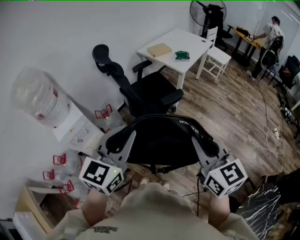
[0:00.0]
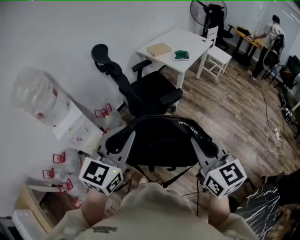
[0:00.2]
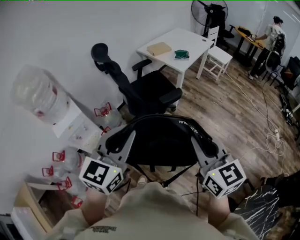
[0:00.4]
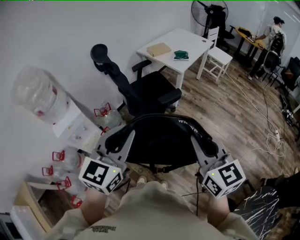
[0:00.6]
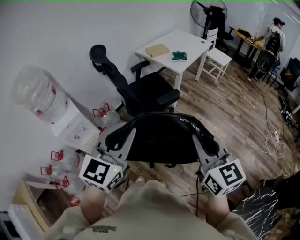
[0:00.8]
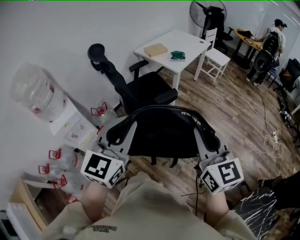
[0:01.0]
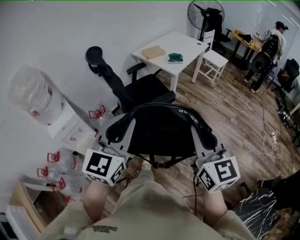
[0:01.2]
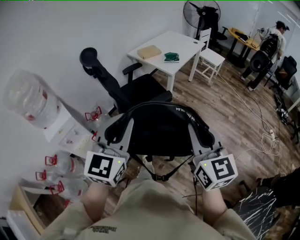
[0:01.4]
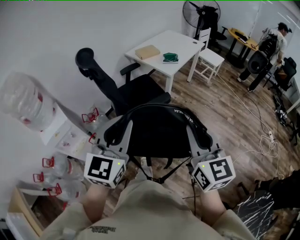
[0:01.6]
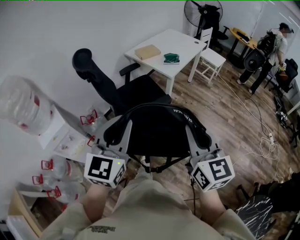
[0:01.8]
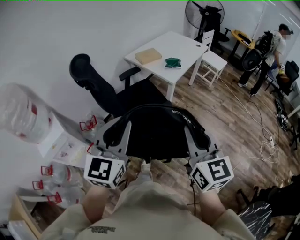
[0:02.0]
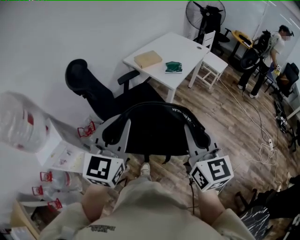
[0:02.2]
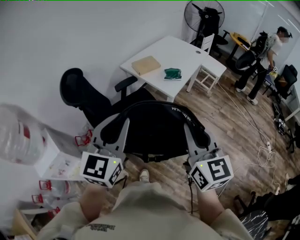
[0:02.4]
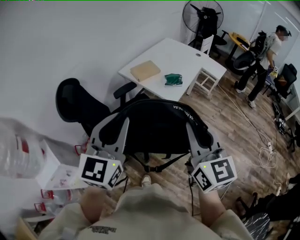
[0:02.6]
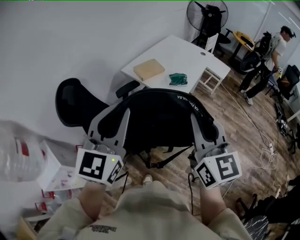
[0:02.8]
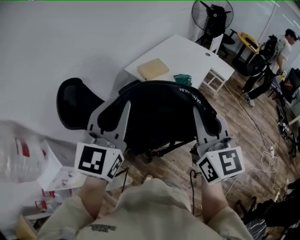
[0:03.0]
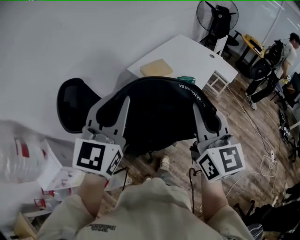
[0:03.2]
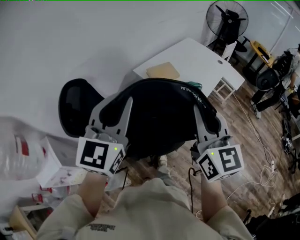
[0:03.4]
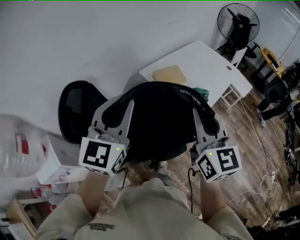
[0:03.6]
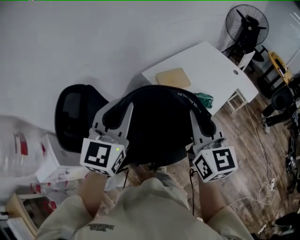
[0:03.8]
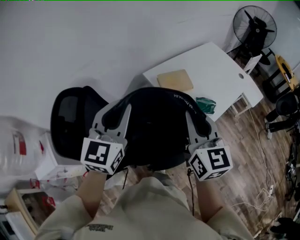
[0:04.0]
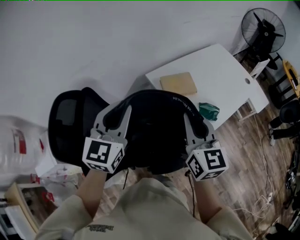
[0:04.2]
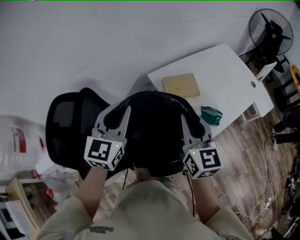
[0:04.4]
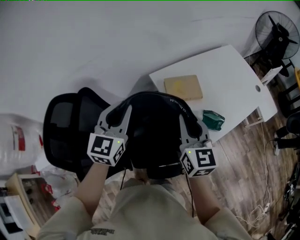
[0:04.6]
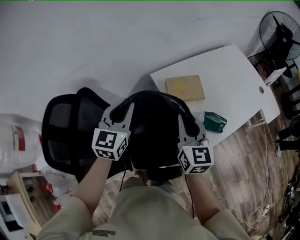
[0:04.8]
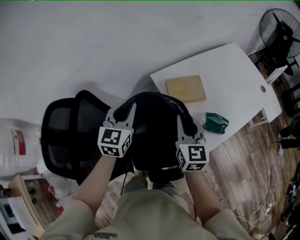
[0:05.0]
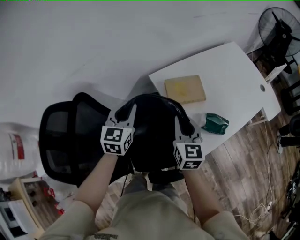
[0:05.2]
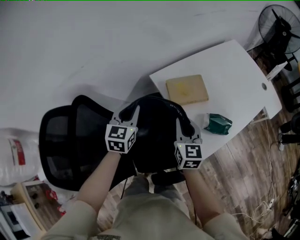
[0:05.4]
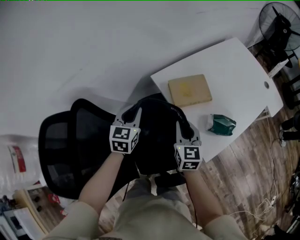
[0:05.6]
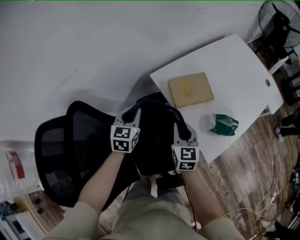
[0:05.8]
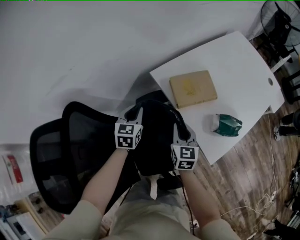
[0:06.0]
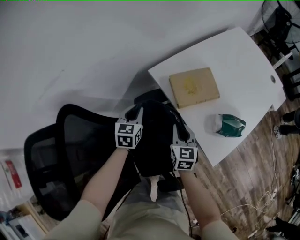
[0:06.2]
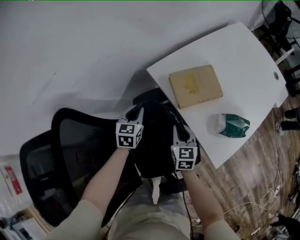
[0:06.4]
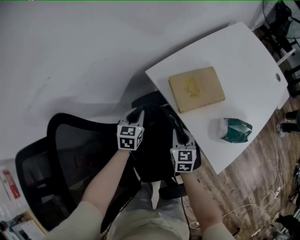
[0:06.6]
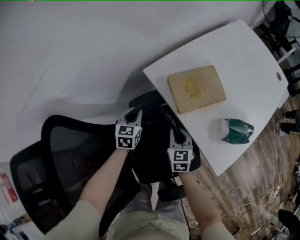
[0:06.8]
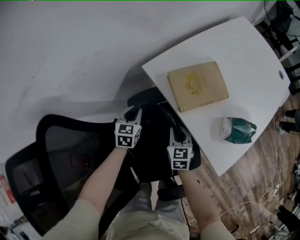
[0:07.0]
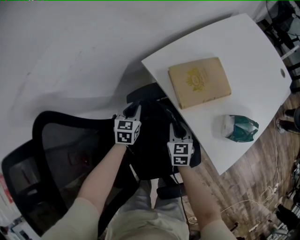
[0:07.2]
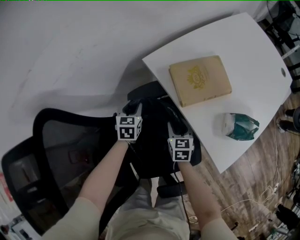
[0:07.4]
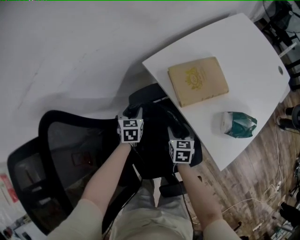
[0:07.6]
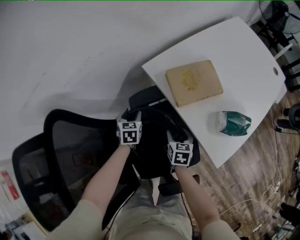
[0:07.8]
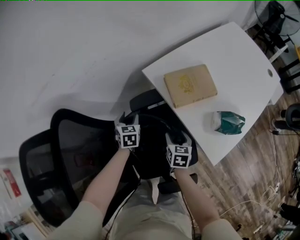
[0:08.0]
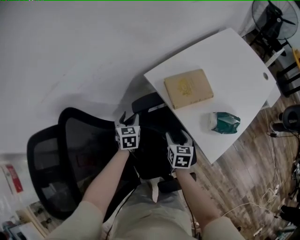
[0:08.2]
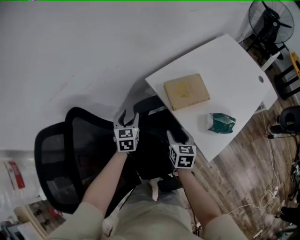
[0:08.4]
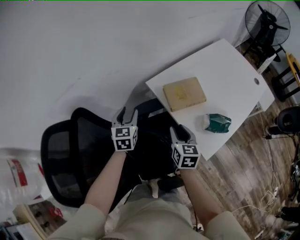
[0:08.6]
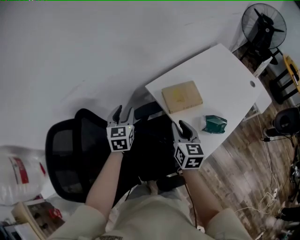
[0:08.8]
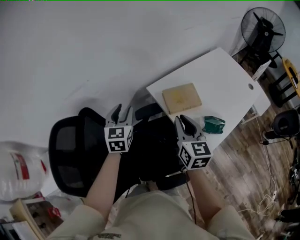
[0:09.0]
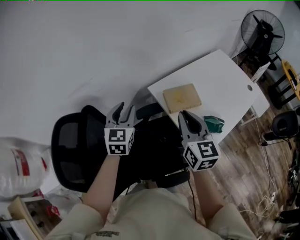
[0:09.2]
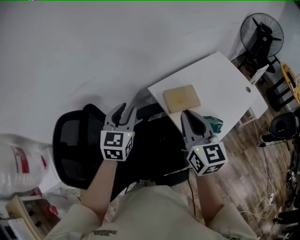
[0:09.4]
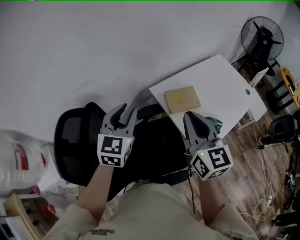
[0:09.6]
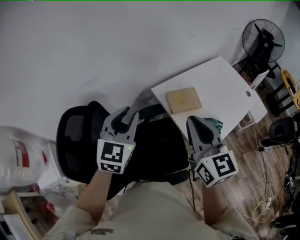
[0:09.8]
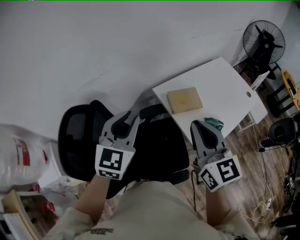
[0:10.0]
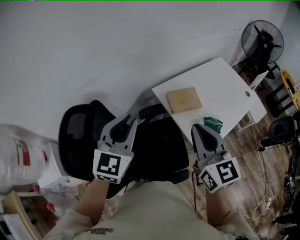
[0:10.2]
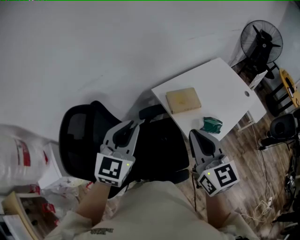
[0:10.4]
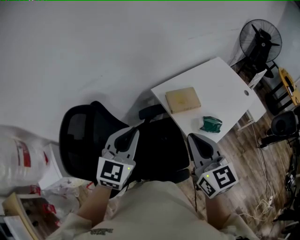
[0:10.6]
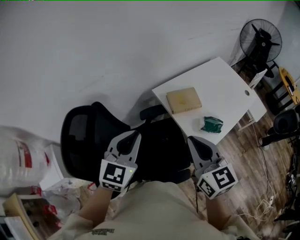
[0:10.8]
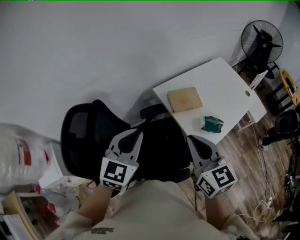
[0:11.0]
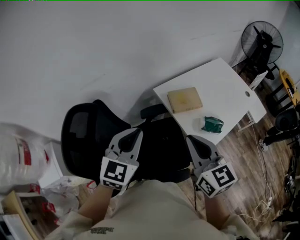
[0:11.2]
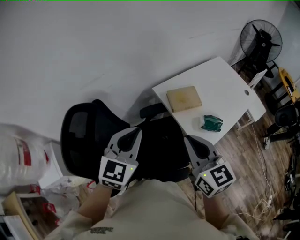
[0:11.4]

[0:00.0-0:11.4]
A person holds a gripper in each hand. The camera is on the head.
0:00.0 to 0:01.4: Both grippers travel together to the right, some 10 cm.
0:01.4 to 0:02.8: The grippers both shift forward by approximately 40 cm.
0:02.8 to 0:04.2: The grippers both shift forward by some 30 cm. The right gripper rotates roughly 20 degrees, while the left gripper changes its angle by some 20 degrees.
0:04.2 to 0:05.6: Both grippers travel together downward and forward, some 30 cm. The left gripper turns by some 20 degrees.
0:05.6 to 0:07.2: The grippers both shift downward by roughly 30 cm.
0:07.2 to 0:08.6: Both grippers move upward, some 25 cm. The left gripper opens. The right gripper opens, then closes once more.
0:08.6 to 0:10.0: The left gripper is displaced upward and backward by about 30 cm, changes its angle by roughly 20 degrees, and closes up; the right gripper travels upward by some 30 cm, turns by about 30 degrees, and closes its fingers.
0:10.0 to 0:11.4: The left gripper is displaced backward by approximately 5 cm. Meanwhile the right gripper ends up some 5 cm from where it was.

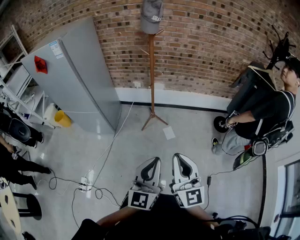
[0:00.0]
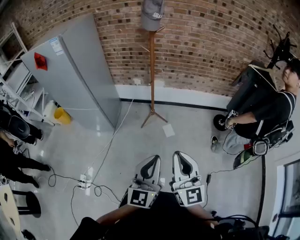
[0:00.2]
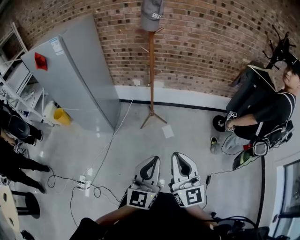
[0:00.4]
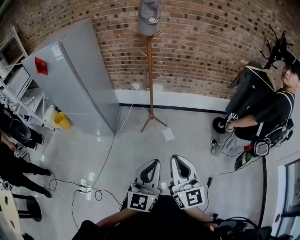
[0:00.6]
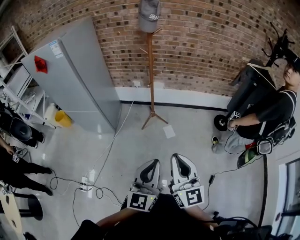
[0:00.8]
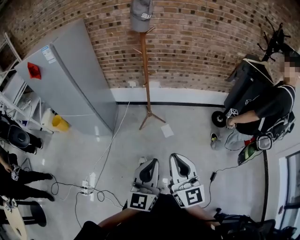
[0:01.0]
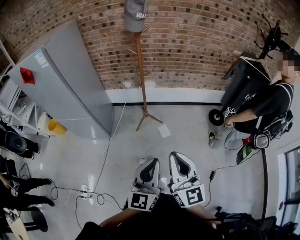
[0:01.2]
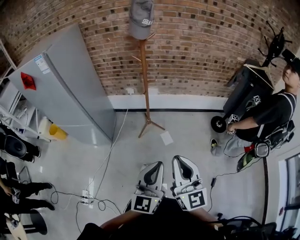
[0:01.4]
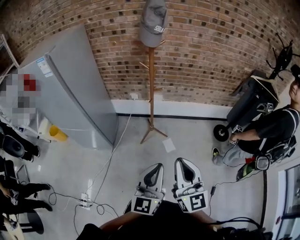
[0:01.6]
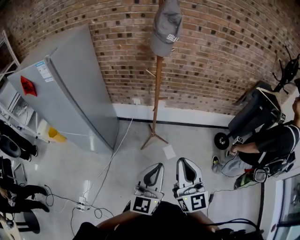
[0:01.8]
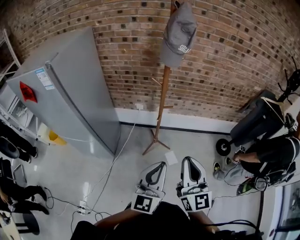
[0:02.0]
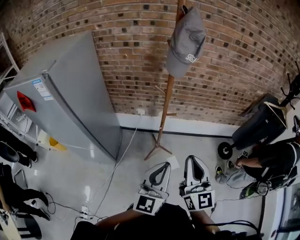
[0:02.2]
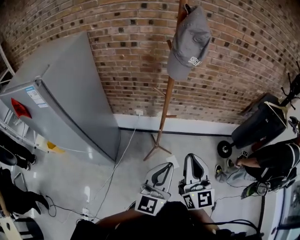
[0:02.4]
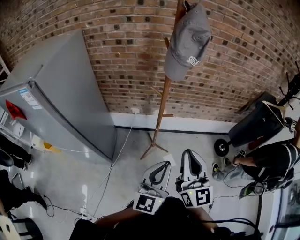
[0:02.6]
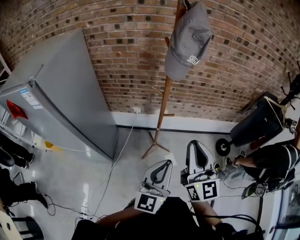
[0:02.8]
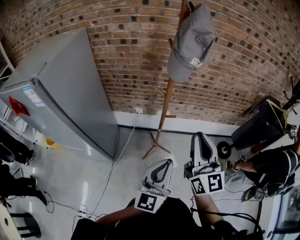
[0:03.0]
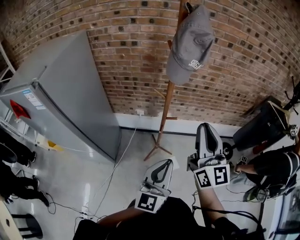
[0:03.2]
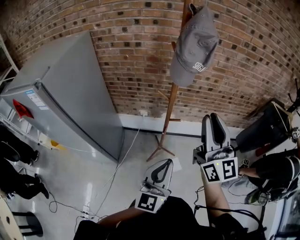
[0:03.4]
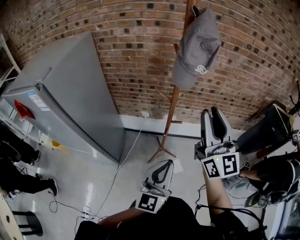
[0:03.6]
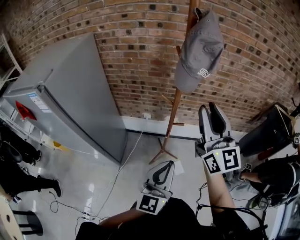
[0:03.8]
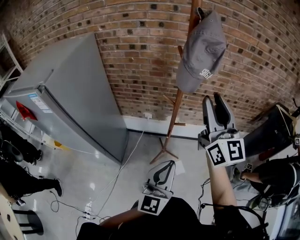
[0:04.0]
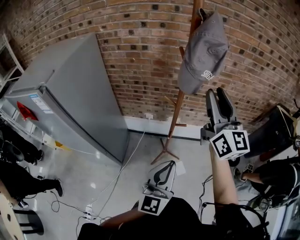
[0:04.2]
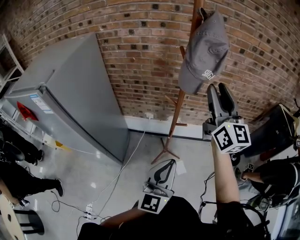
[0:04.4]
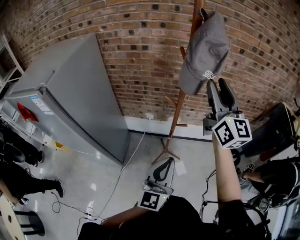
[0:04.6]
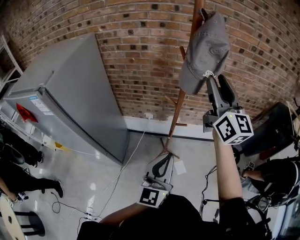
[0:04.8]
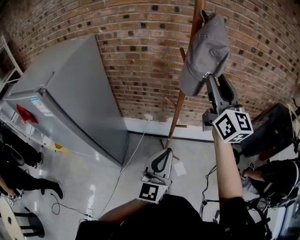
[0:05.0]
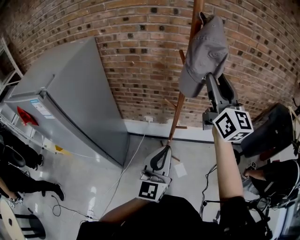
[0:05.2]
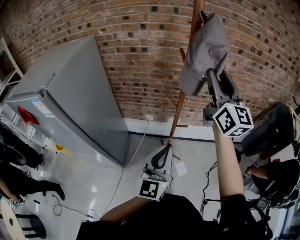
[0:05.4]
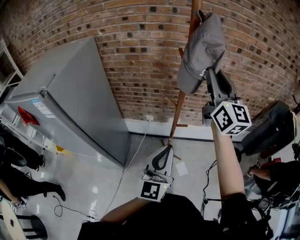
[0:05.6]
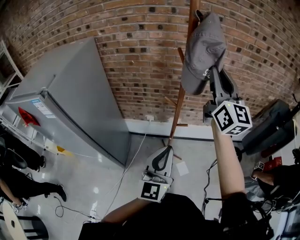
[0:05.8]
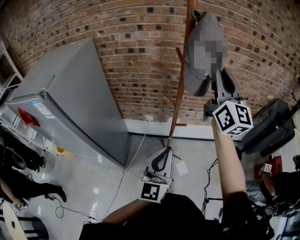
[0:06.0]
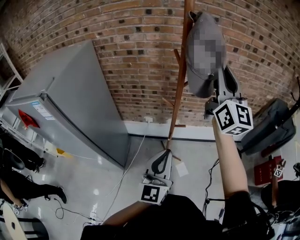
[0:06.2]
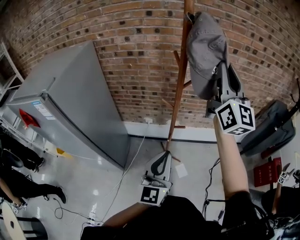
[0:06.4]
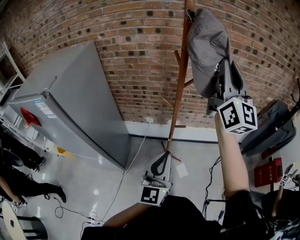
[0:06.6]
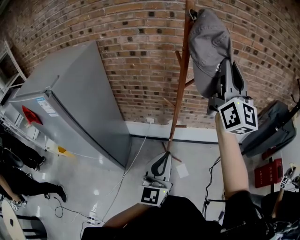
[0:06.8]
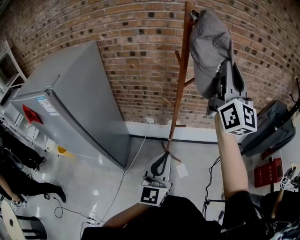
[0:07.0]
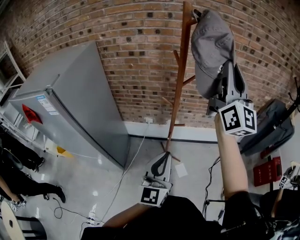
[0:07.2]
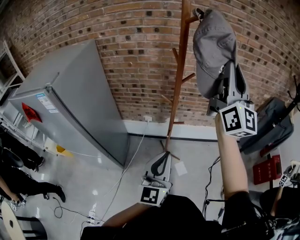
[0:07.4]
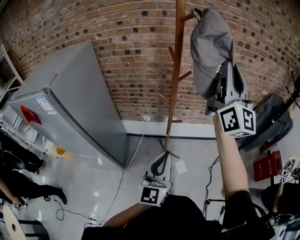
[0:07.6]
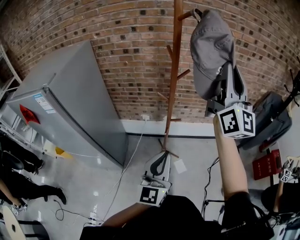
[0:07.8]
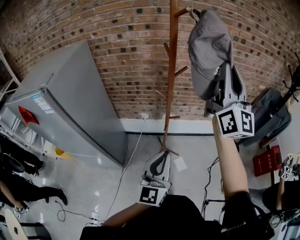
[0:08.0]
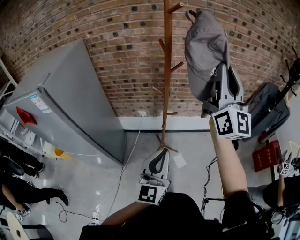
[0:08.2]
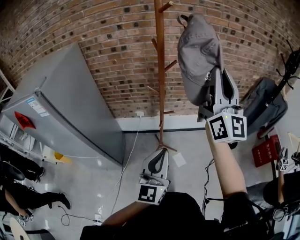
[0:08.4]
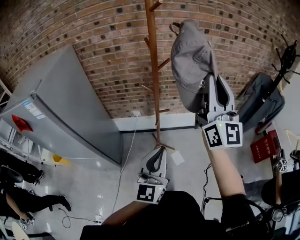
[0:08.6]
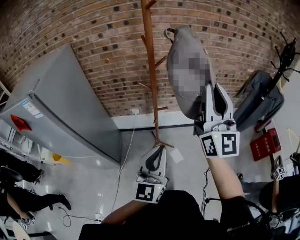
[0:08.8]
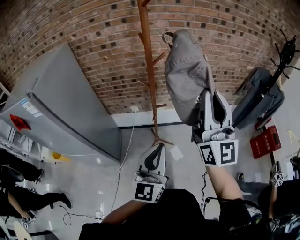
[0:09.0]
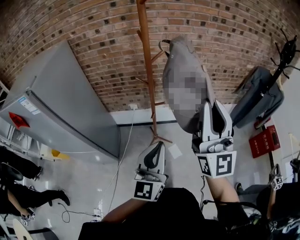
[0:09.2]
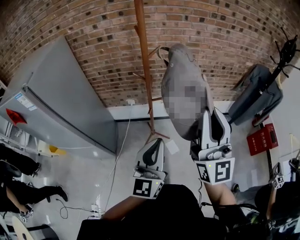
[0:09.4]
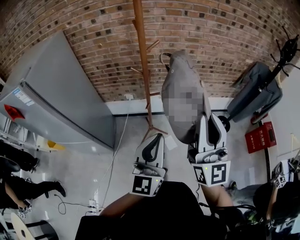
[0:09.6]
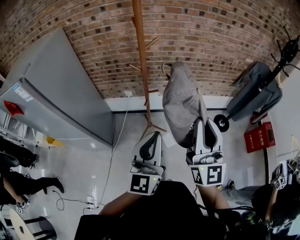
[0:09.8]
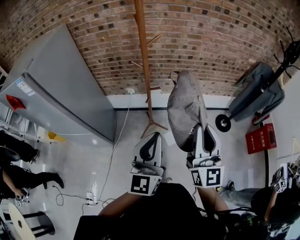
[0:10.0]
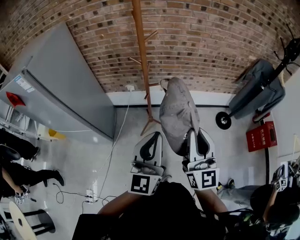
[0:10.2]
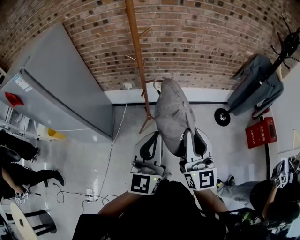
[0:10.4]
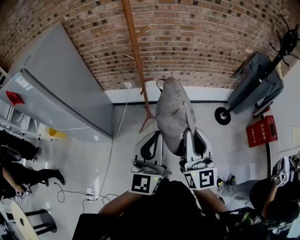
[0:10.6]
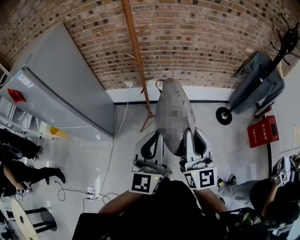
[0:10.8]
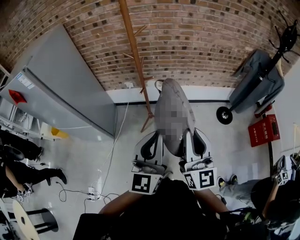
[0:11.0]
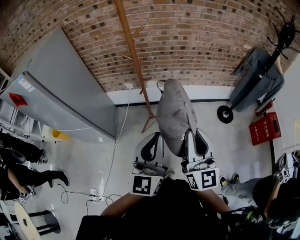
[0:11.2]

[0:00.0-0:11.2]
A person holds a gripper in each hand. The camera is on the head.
0:00.0 to 0:01.6: Both grippers travel together forward, approximately 10 cm.
0:01.6 to 0:03.2: The two grippers go some 30 cm forward.
0:03.2 to 0:04.8: The right gripper shifts about 20 cm forward and upward, and opens its fingers, while the left gripper moves forward, about 5 cm.
0:04.8 to 0:06.4: The right gripper travels upward by roughly 5 cm, and closes up.
0:06.4 to 0:08.0: The two grippers go roughly 10 cm backward.
0:08.0 to 0:09.6: The left gripper travels to the right by roughly 5 cm. The right gripper travels backward and downward by approximately 25 cm.
0:09.6 to 0:11.2: The right gripper heads downward, backward and to the right, covering roughly 15 cm; the left gripper shifts some 10 cm backward and to the right.

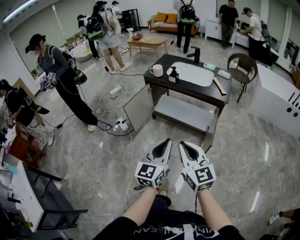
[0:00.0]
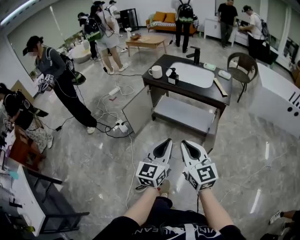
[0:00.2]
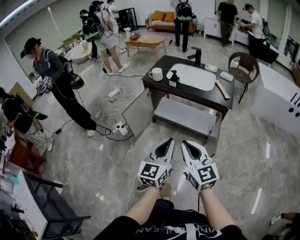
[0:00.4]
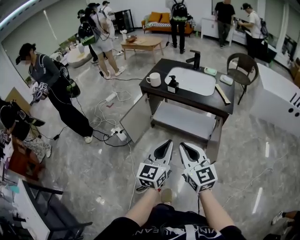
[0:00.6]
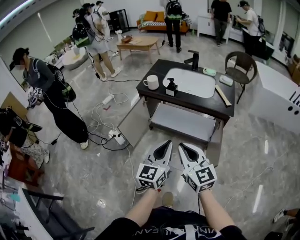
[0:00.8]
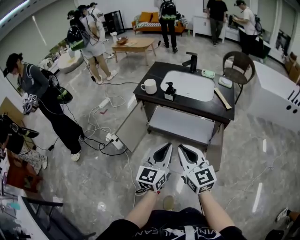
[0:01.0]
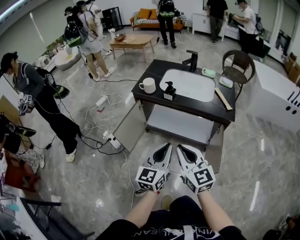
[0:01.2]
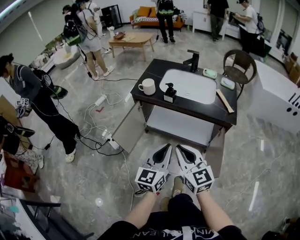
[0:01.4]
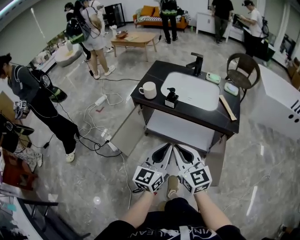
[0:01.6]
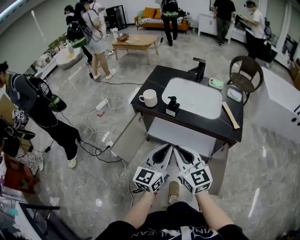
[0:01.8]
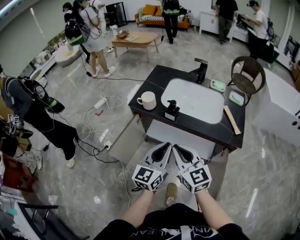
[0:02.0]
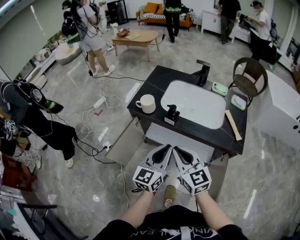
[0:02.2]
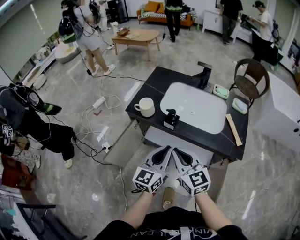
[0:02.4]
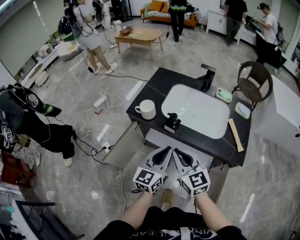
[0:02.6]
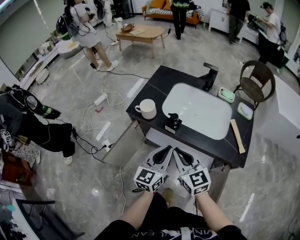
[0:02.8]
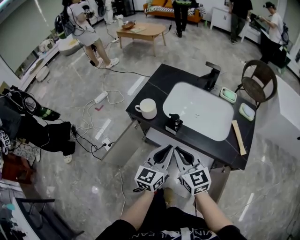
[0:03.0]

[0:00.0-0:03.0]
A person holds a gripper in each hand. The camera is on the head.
0:00.0 to 0:01.6: The two grippers go about 30 cm forward.
0:01.6 to 0:03.0: The two grippers go approximately 20 cm forward.
